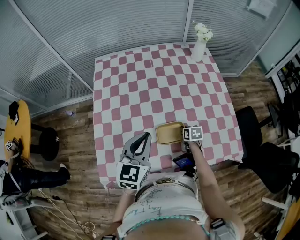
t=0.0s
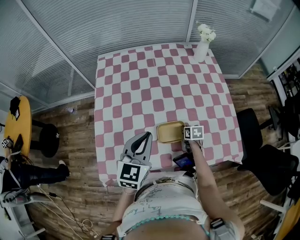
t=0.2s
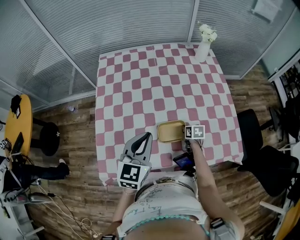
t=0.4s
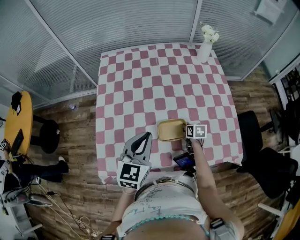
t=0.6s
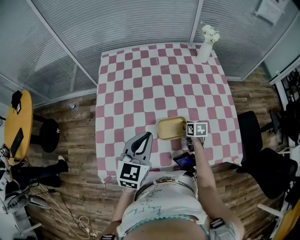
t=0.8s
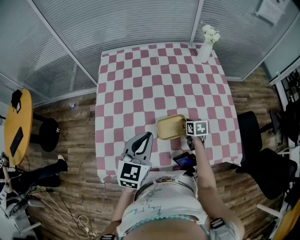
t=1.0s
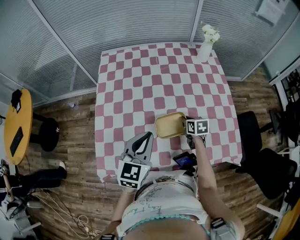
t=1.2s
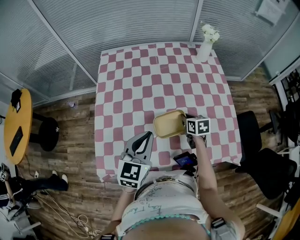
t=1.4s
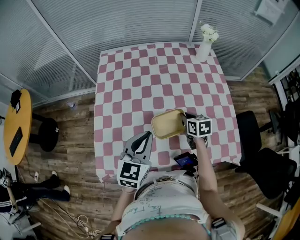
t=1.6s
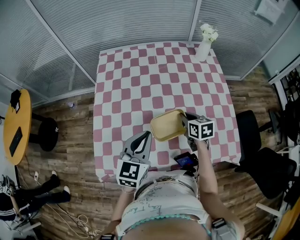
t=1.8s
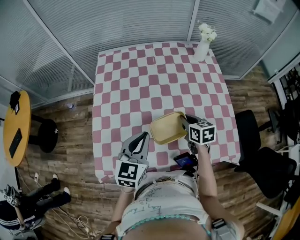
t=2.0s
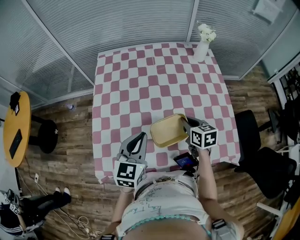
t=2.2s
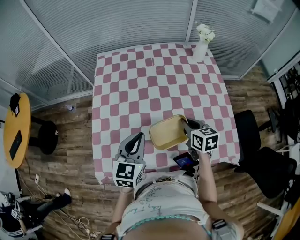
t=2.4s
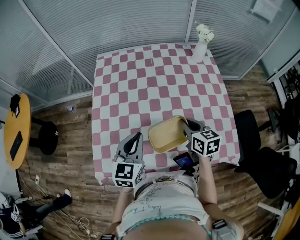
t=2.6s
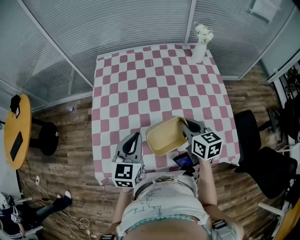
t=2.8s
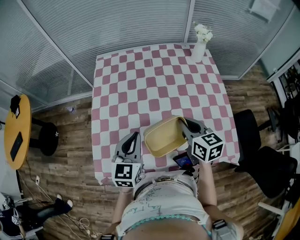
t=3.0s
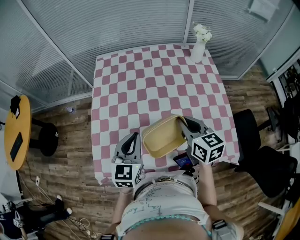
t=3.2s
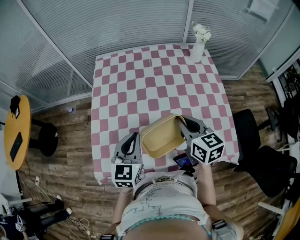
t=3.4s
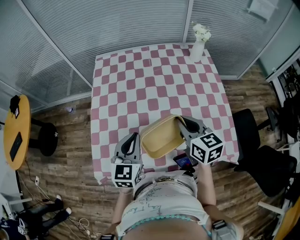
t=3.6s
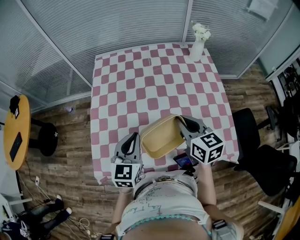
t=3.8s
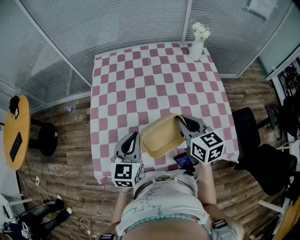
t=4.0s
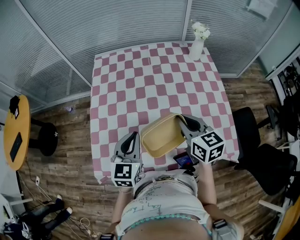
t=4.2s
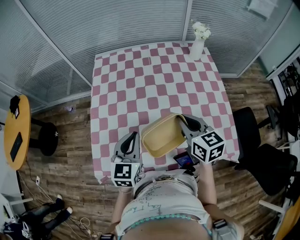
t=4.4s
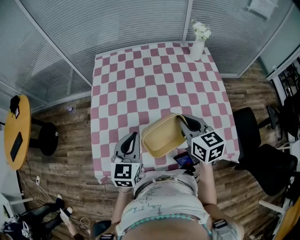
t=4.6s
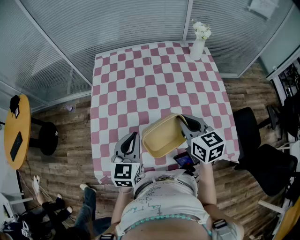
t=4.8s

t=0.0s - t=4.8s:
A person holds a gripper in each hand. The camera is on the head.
t=0.0s - t=1.6s: The right gripper shifts about 15 cm upward.
t=1.6s - t=3.2s: The right gripper heads upward, covering roughly 15 cm, and turns by roughly 20 degrees.
t=3.2s - t=4.8s: Both grippers stay about where they are.

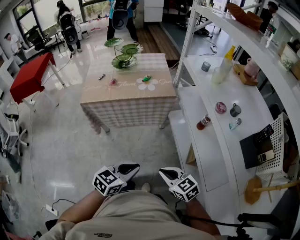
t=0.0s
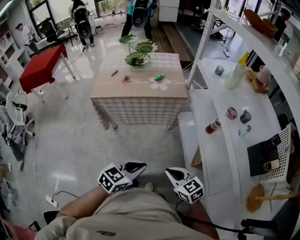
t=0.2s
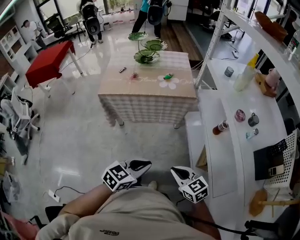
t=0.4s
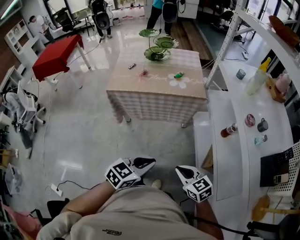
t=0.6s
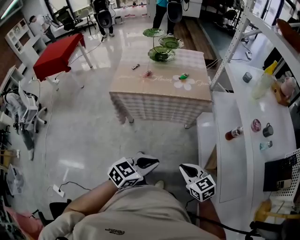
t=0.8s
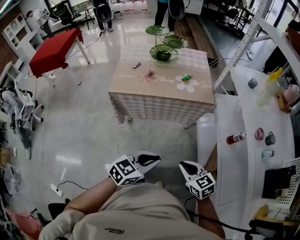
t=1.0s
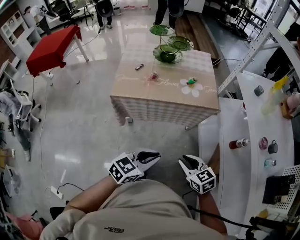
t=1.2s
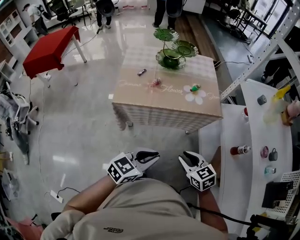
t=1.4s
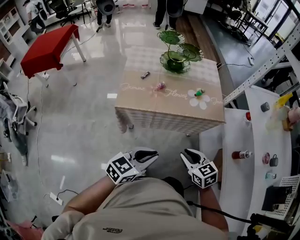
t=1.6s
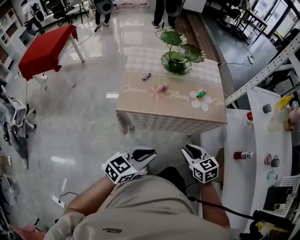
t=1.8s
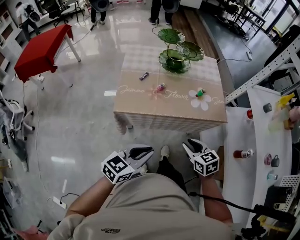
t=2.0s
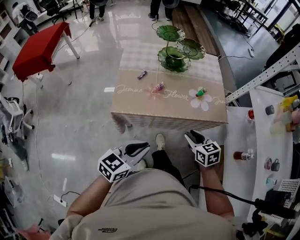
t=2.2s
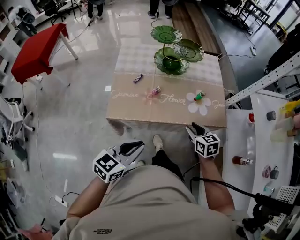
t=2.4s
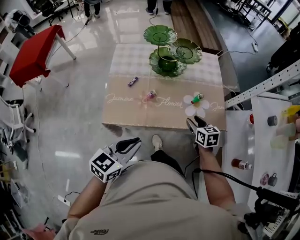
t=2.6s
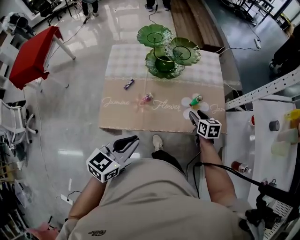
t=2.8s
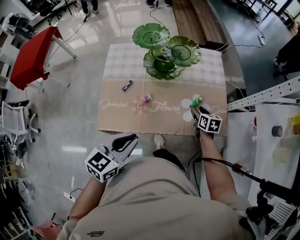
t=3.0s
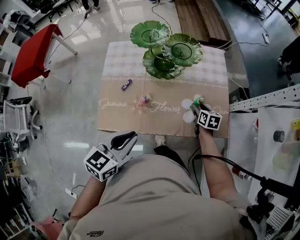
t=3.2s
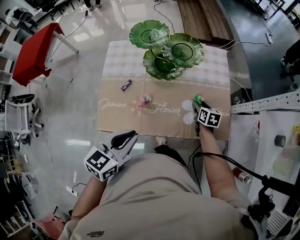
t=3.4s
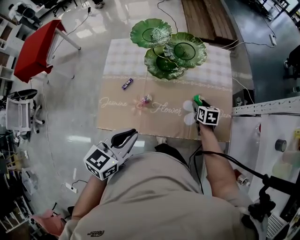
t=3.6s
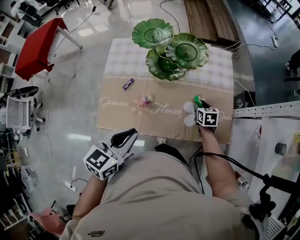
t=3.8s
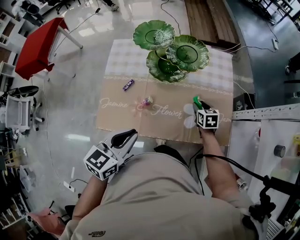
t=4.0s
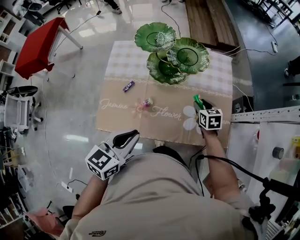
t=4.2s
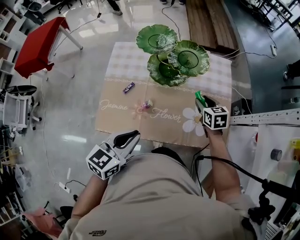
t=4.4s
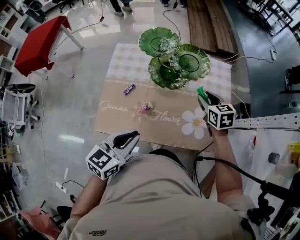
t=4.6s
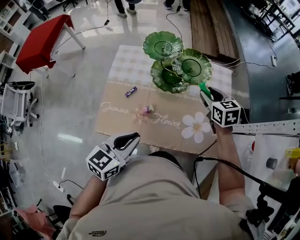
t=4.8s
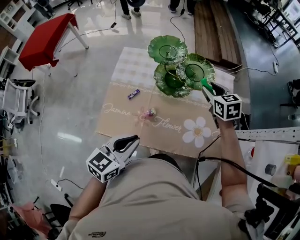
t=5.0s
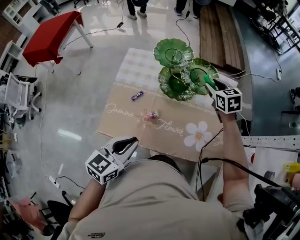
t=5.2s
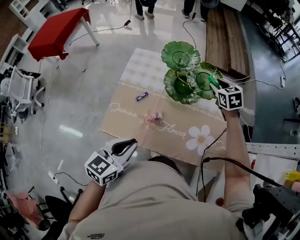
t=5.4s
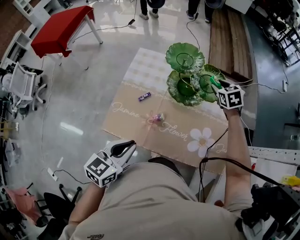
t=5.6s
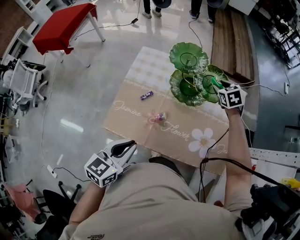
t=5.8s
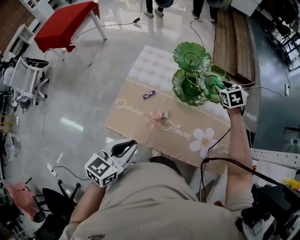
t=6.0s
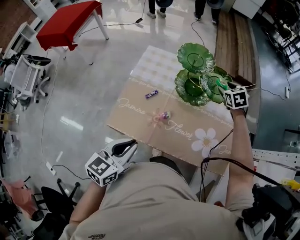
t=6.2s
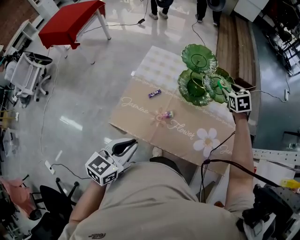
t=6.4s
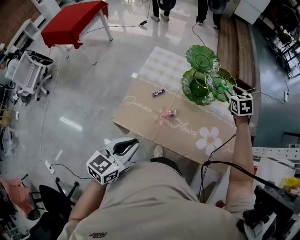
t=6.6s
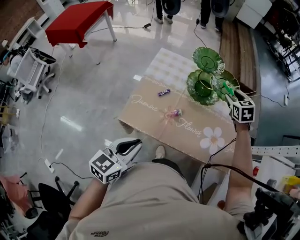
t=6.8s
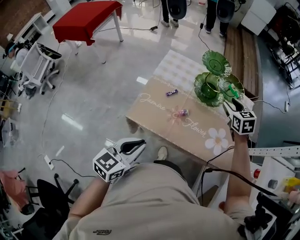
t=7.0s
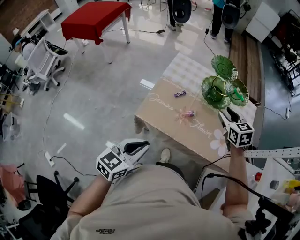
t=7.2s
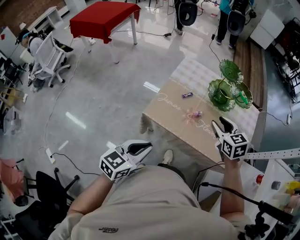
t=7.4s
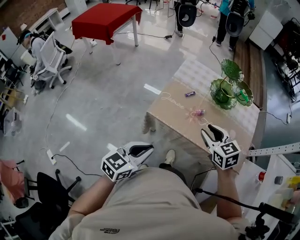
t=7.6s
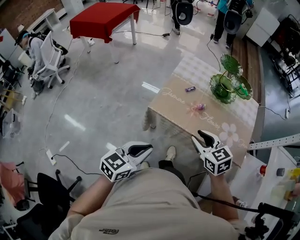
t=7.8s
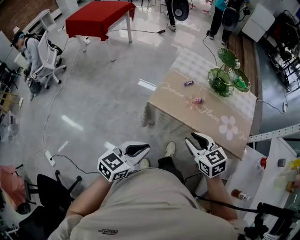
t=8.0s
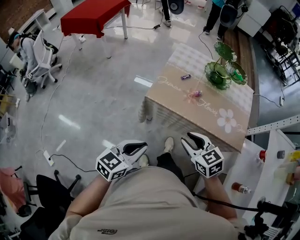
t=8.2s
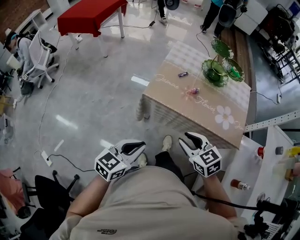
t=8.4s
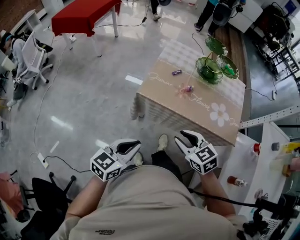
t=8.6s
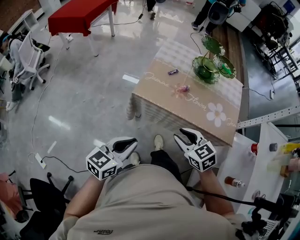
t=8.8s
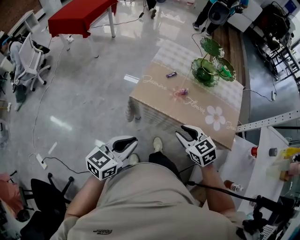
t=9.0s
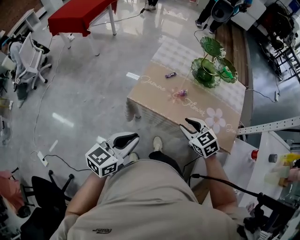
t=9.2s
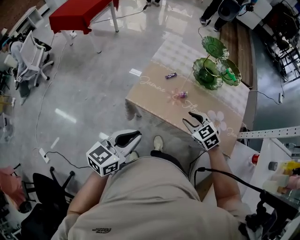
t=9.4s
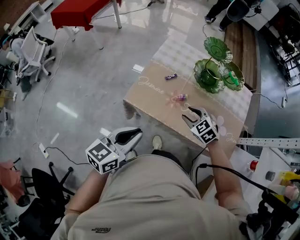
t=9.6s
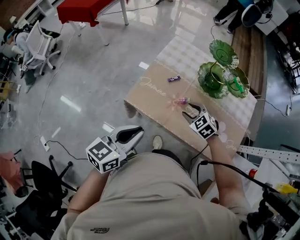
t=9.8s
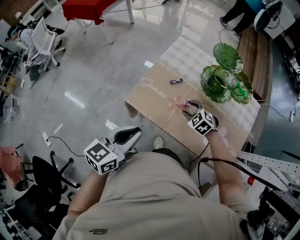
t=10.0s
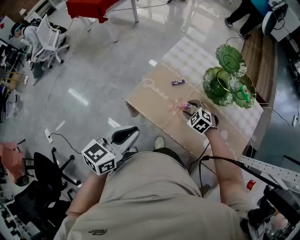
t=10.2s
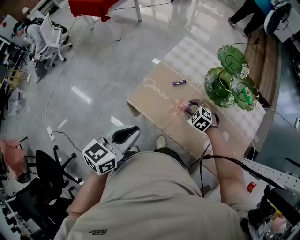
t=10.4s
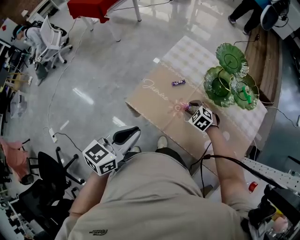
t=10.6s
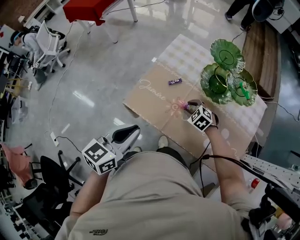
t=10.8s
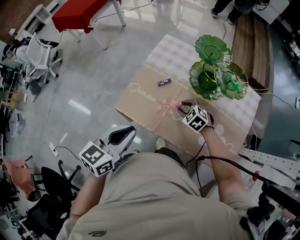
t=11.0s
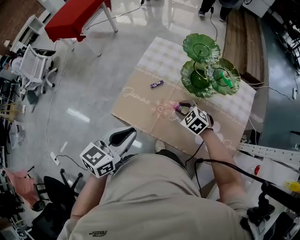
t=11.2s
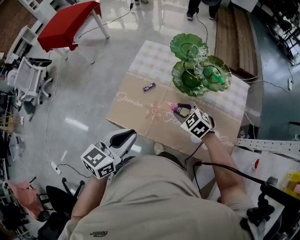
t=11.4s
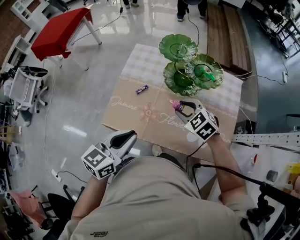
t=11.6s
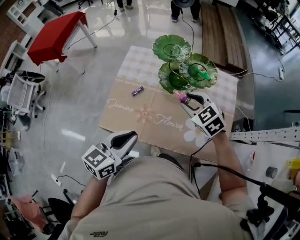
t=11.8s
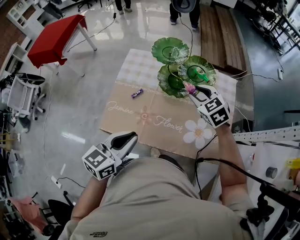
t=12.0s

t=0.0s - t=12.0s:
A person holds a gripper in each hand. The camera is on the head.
t=0.0s - t=1.6s: The right gripper travels forward and to the left by about 35 cm; the left gripper heads to the left and forward, covering approximately 35 cm.
t=1.6s - t=3.0s: The left gripper moves forward, roughly 25 cm. The right gripper travels forward by approximately 40 cm, swivels about 30 degrees, and opens its fingers.
t=3.0s - t=4.4s: The left gripper shifts some 5 cm forward, while the right gripper travels forward and upward by some 10 cm, and turns by about 20 degrees.
t=4.4s - t=6.0s: The left gripper travels to the left by roughly 5 cm, while the right gripper goes some 20 cm forward, and turns by approximately 30 degrees.
t=6.0s - t=7.6s: The left gripper shifts some 20 cm backward and to the left. The right gripper heads backward and to the left, covering some 50 cm, and swivels about 30 degrees.
t=7.6s - t=9.0s: The right gripper heads backward and downward, covering some 10 cm.
t=9.0s - t=10.4s: The left gripper moves forward and to the right, approximately 20 cm. The right gripper goes approximately 30 cm forward and downward, and swivels roughly 40 degrees.
t=10.4s - t=12.0s: The left gripper ends up some 15 cm from where it was, and changes its angle by some 20 degrees; the right gripper is displaced upward by approximately 20 cm, and turns by approximately 40 degrees.

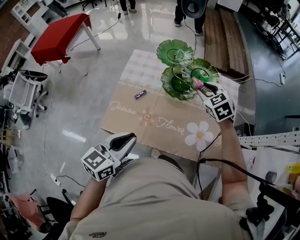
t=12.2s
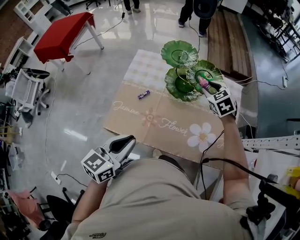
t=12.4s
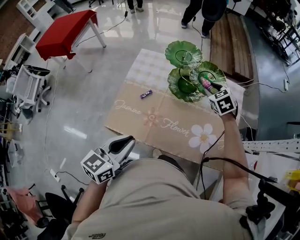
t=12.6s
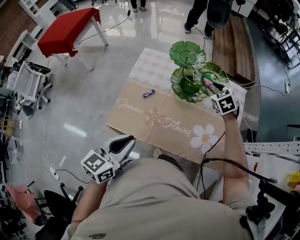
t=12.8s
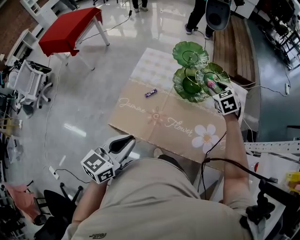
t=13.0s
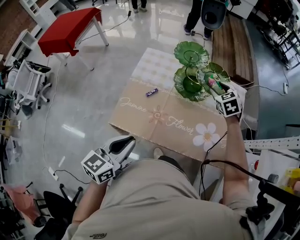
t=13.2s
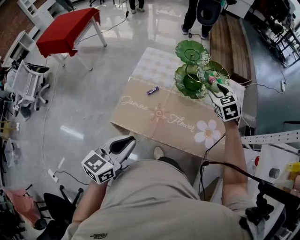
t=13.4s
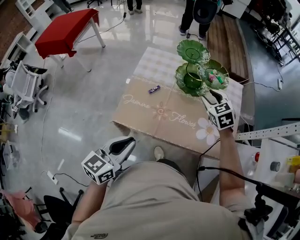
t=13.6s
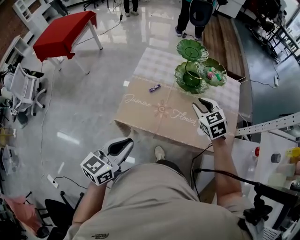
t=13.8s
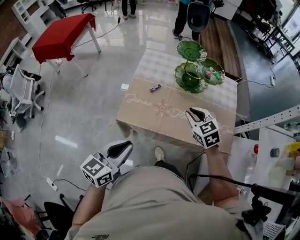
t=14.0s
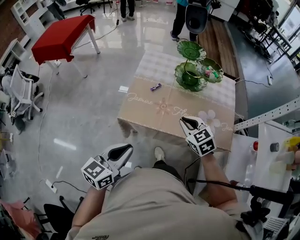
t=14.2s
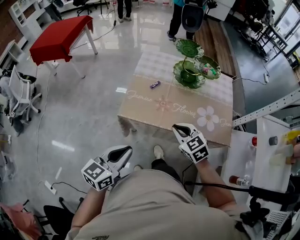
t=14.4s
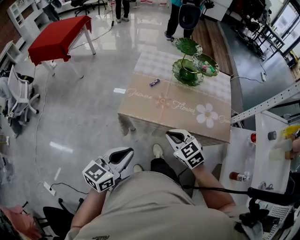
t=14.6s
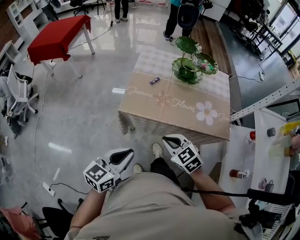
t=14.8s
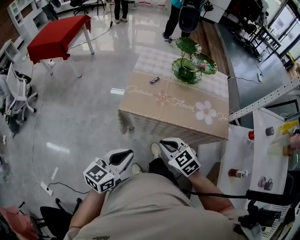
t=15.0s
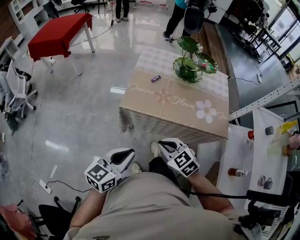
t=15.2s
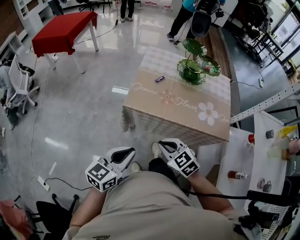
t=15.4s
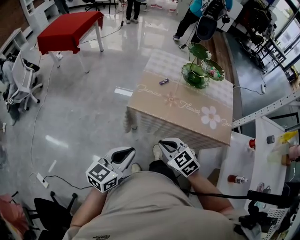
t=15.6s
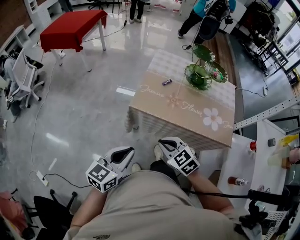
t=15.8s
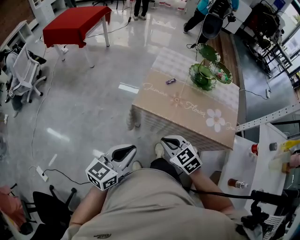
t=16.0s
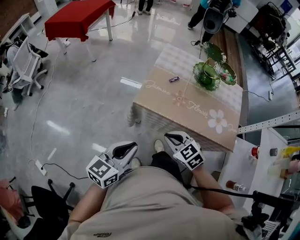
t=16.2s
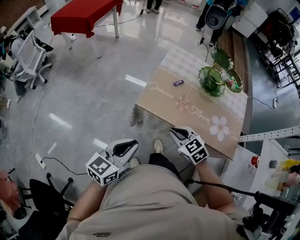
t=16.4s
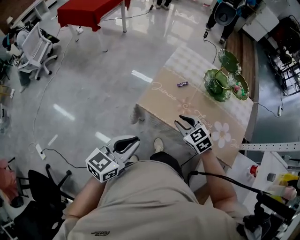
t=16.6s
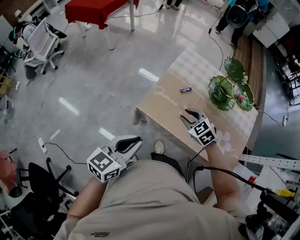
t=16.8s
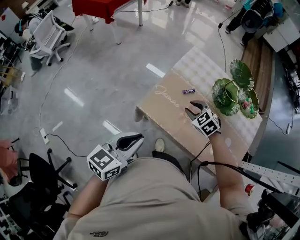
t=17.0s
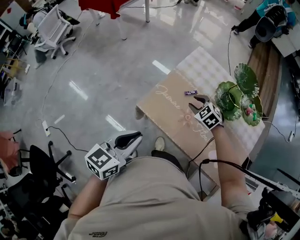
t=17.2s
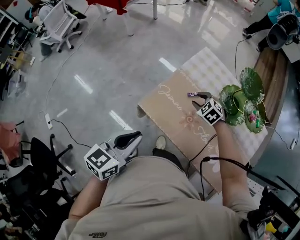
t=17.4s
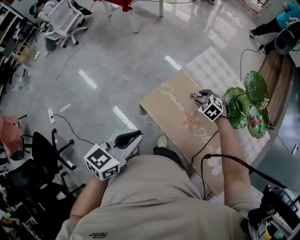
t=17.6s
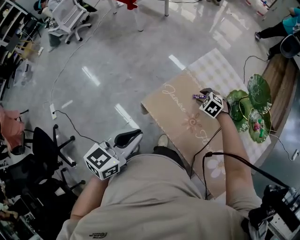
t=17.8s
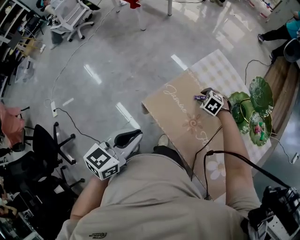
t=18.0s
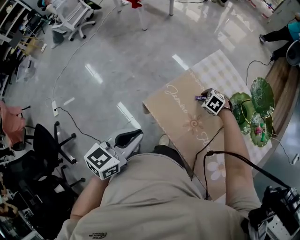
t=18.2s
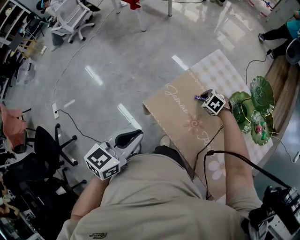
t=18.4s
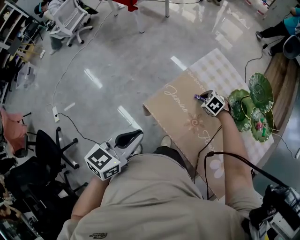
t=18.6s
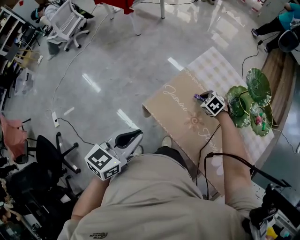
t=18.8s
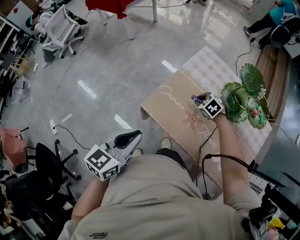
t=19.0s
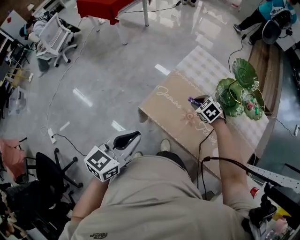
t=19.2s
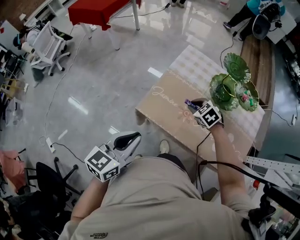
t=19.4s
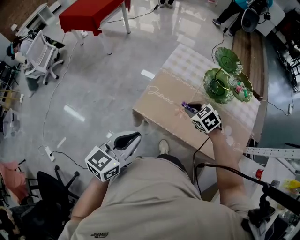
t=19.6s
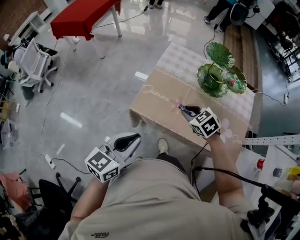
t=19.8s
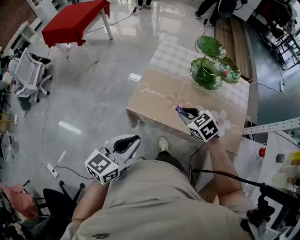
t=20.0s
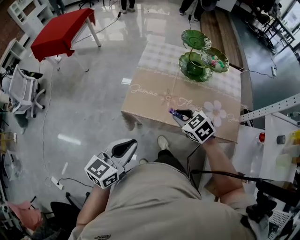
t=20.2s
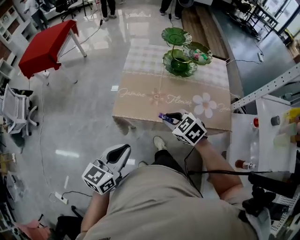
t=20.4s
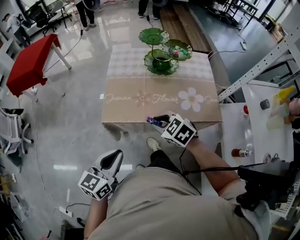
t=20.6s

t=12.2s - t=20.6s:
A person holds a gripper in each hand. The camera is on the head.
t=12.2s - t=13.6s: The right gripper shifts approximately 10 cm backward. Meanwhile the left gripper is displaced backward and to the left by about 10 cm.
t=13.6s - t=15.0s: The right gripper is displaced backward and to the left by about 40 cm, turns by about 20 degrees, and closes up. The left gripper goes roughly 20 cm backward.
t=15.0s - t=16.4s: The right gripper is displaced forward by about 10 cm. Meanwhile the left gripper shifts by roughly 5 cm.
t=16.4s - t=17.8s: The right gripper goes roughly 35 cm forward and downward, changes its angle by approximately 40 degrees, and opens its fingers. The left gripper shifts about 15 cm forward and to the right, and swivels some 30 degrees.
t=17.8s - t=19.2s: The right gripper moves backward and upward, some 10 cm, and swivels roughly 20 degrees.
t=19.2s - t=20.6s: The right gripper travels backward and upward by roughly 30 cm, and changes its angle by roughly 30 degrees. Meanwhile the left gripper travels backward by roughly 10 cm, and changes its angle by some 30 degrees.
